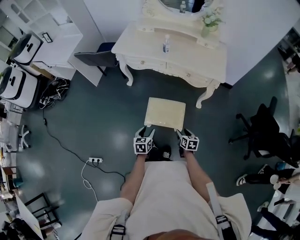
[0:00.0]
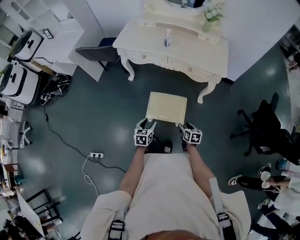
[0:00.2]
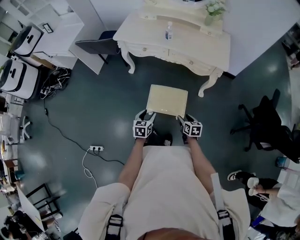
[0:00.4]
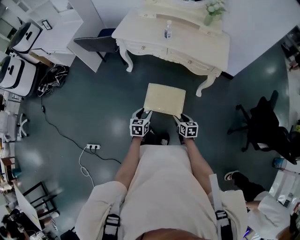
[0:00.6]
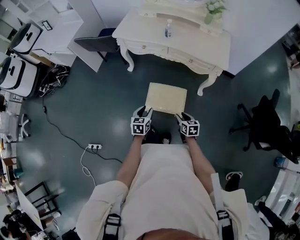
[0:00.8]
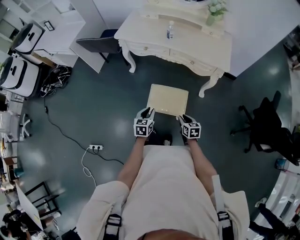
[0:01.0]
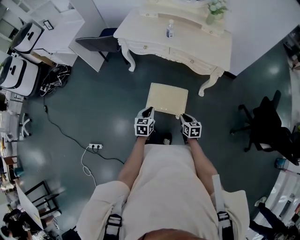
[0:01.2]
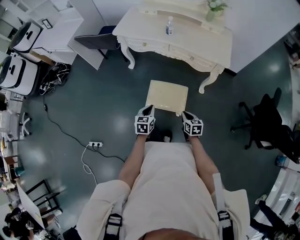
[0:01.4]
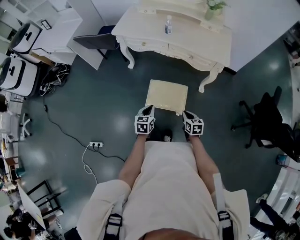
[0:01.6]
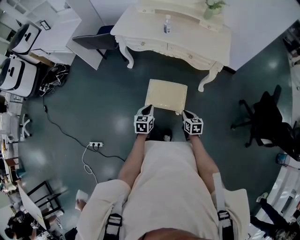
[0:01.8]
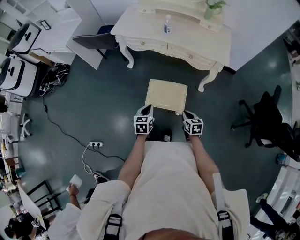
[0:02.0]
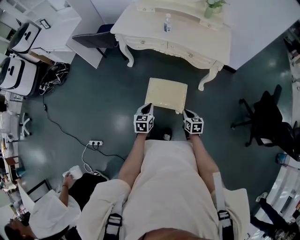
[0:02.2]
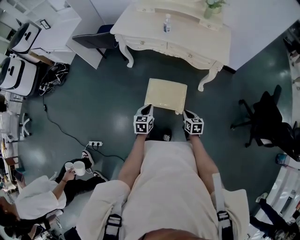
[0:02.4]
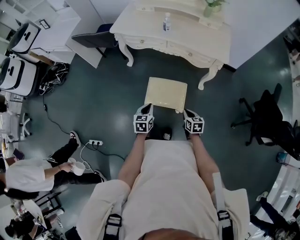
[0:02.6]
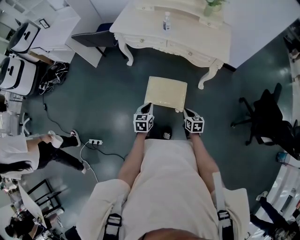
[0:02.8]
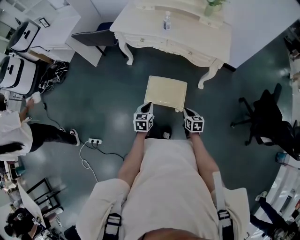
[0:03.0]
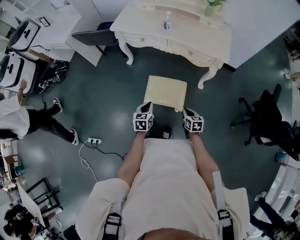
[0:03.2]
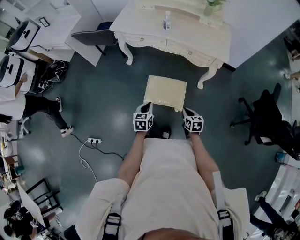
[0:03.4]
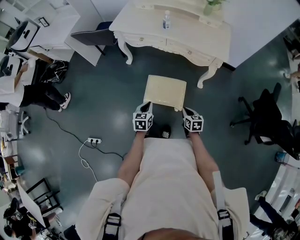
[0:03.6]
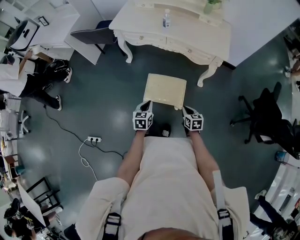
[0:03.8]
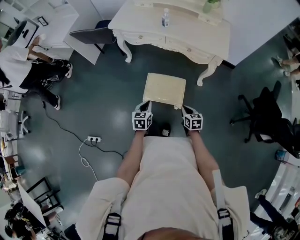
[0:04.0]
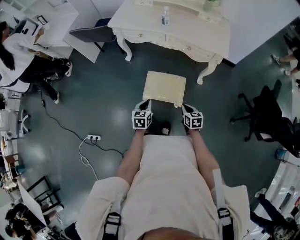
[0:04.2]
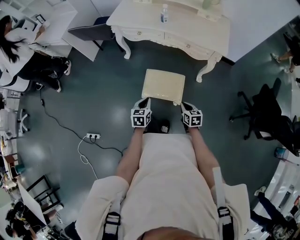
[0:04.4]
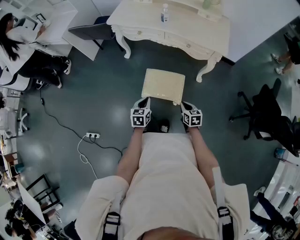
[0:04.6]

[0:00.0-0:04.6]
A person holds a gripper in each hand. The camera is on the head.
0:00.0 to 0:01.6: The left gripper closes its fingers. The right gripper closes.
0:01.6 to 0:04.6: The grippers make only small movements.

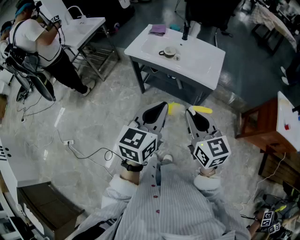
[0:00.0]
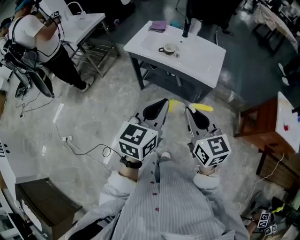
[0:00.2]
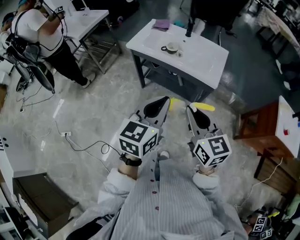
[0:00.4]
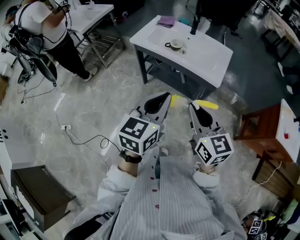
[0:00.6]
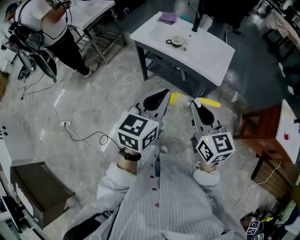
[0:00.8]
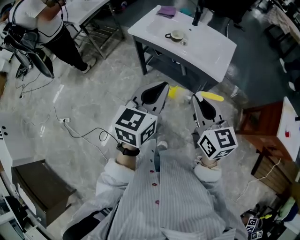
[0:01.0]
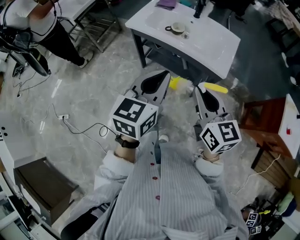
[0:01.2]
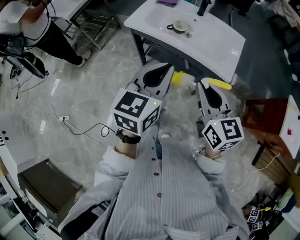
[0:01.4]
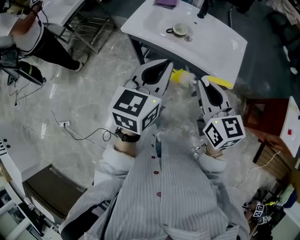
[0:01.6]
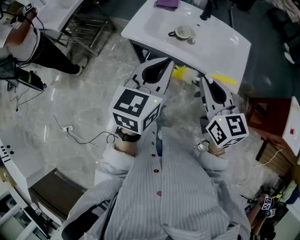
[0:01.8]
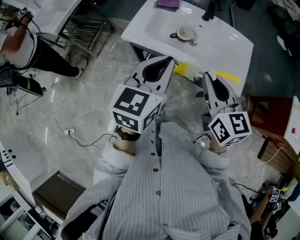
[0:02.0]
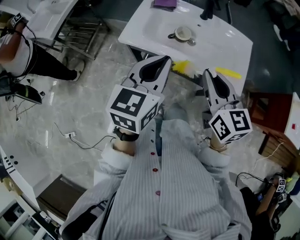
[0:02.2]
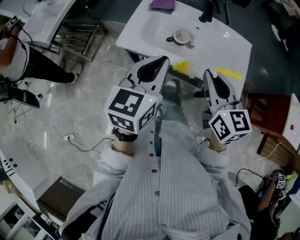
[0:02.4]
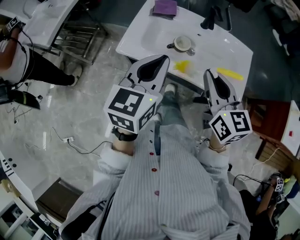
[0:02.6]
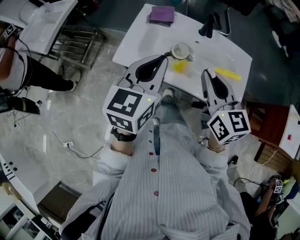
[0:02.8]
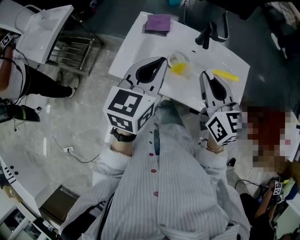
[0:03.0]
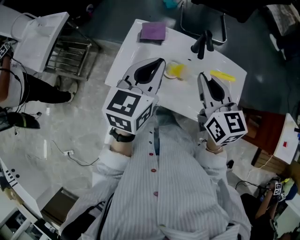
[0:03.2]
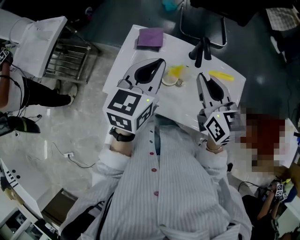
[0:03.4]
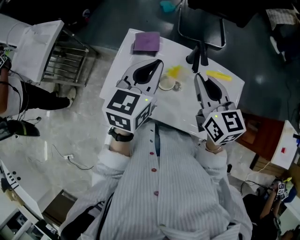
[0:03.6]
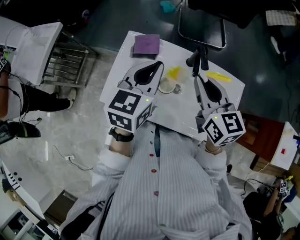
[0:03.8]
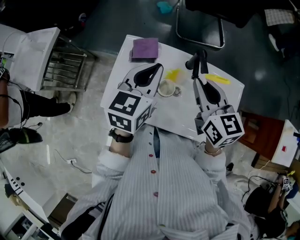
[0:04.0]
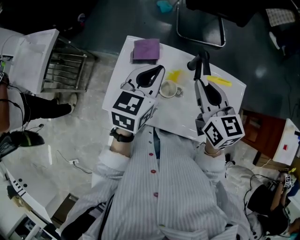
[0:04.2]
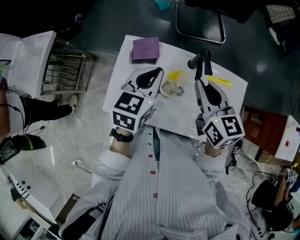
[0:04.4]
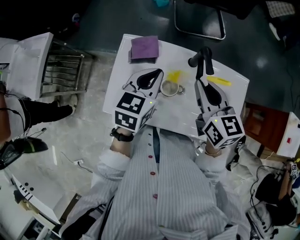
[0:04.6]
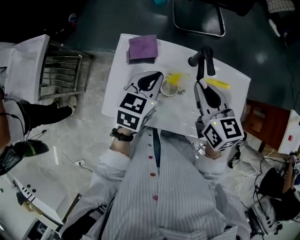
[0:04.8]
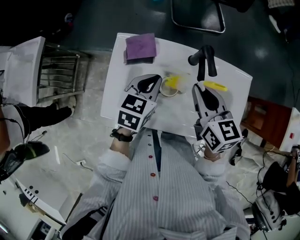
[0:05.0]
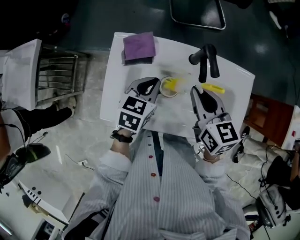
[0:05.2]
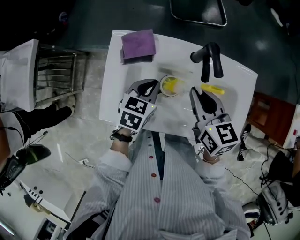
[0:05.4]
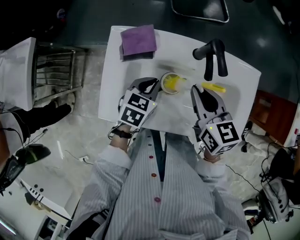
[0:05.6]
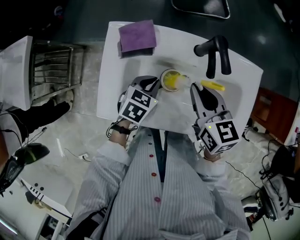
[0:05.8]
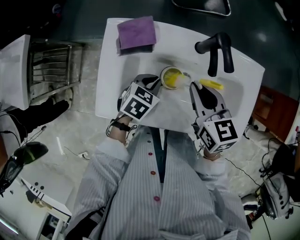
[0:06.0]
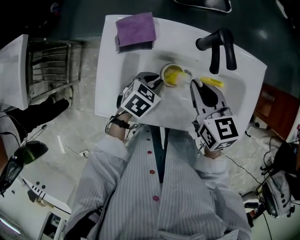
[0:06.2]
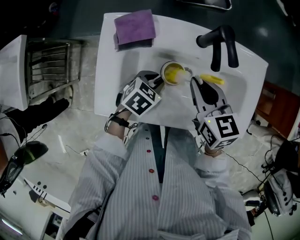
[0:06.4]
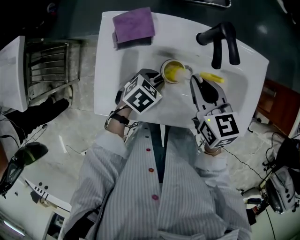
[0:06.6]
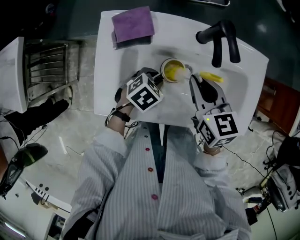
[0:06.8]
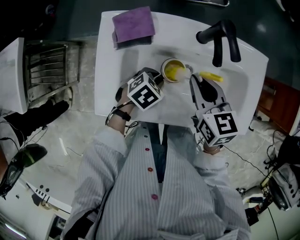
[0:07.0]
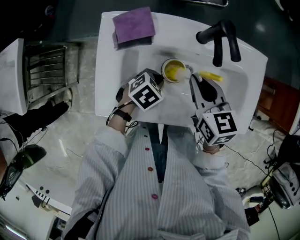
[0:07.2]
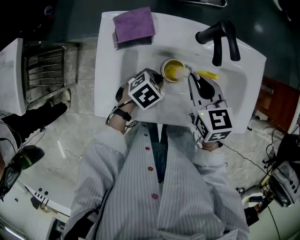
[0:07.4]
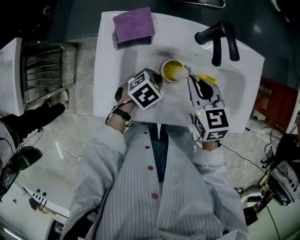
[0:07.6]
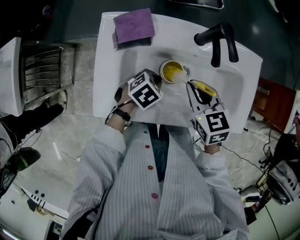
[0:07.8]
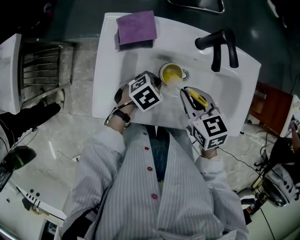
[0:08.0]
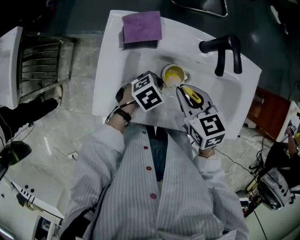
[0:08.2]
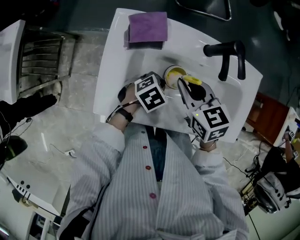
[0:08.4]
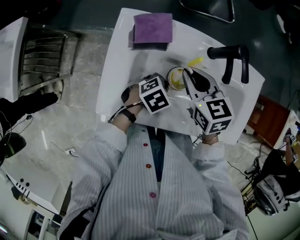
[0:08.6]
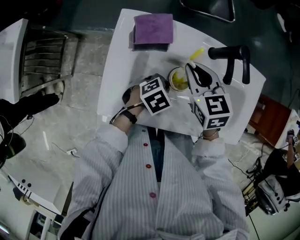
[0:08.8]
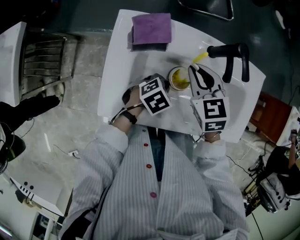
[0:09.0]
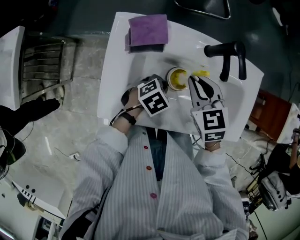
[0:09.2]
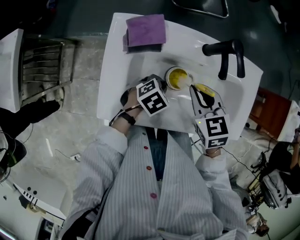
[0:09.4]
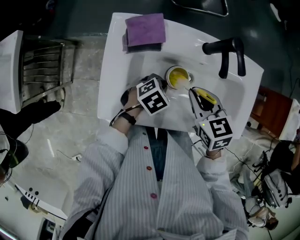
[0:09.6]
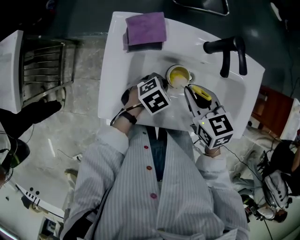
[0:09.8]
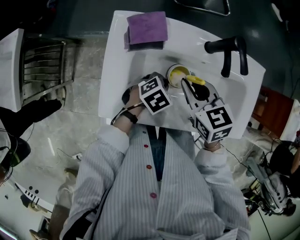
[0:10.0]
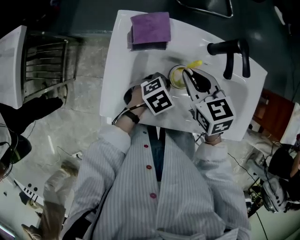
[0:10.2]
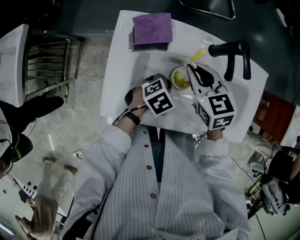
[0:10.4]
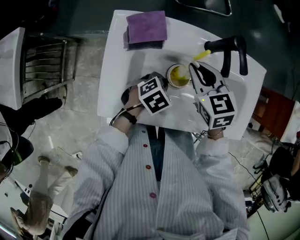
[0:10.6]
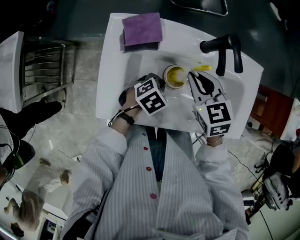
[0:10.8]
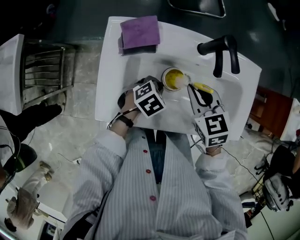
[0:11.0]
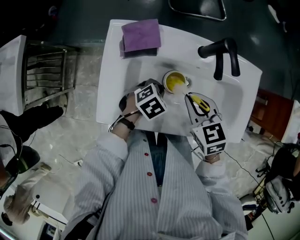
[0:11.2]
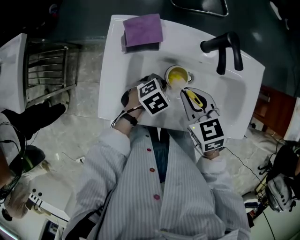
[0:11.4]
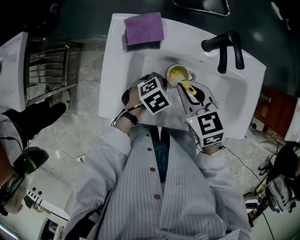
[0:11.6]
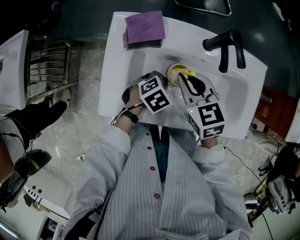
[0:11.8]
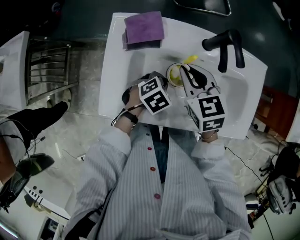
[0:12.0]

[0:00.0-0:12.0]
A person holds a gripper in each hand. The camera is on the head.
0:00.0 to 0:01.6: Both grippers travel together forward, some 20 cm.
0:01.6 to 0:03.0: The grippers both shift forward by about 30 cm.
0:03.0 to 0:04.4: Both grippers move forward, approximately 15 cm.
0:04.4 to 0:06.0: The left gripper moves downward, some 25 cm, and swivels some 40 degrees. The right gripper shifts about 15 cm downward.
0:06.0 to 0:07.6: The left gripper shifts by approximately 5 cm, and swivels roughly 20 degrees.
0:07.6 to 0:09.0: The right gripper heads to the left, covering some 5 cm.
0:10.4 to 0:12.0: The right gripper moves about 5 cm backward and comes back.

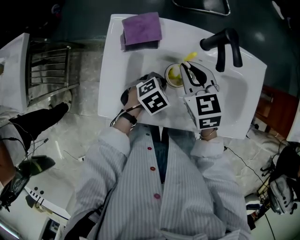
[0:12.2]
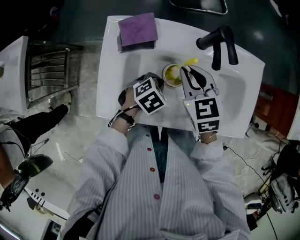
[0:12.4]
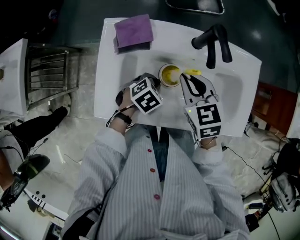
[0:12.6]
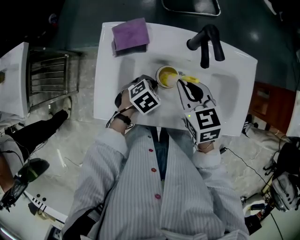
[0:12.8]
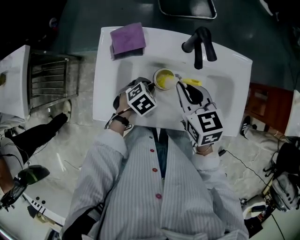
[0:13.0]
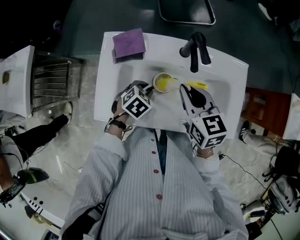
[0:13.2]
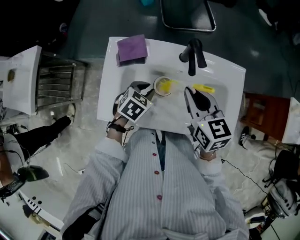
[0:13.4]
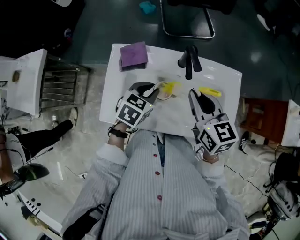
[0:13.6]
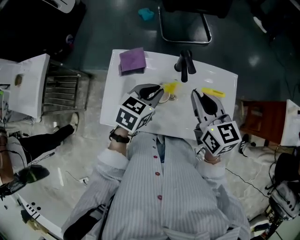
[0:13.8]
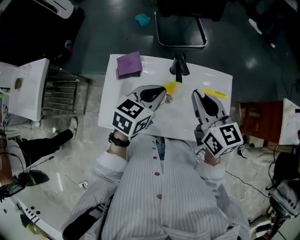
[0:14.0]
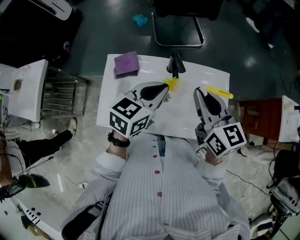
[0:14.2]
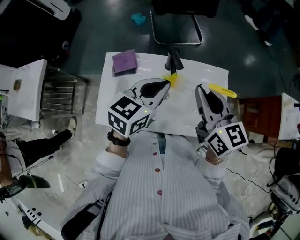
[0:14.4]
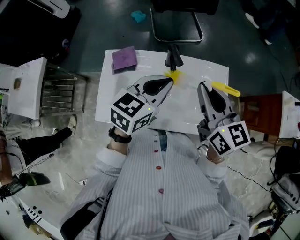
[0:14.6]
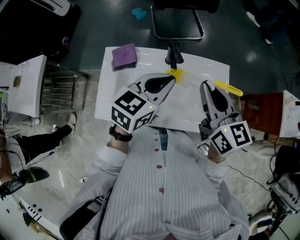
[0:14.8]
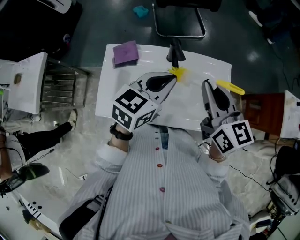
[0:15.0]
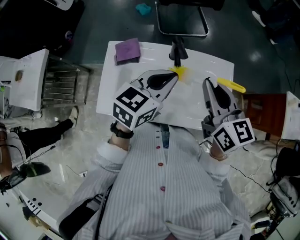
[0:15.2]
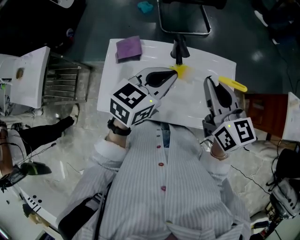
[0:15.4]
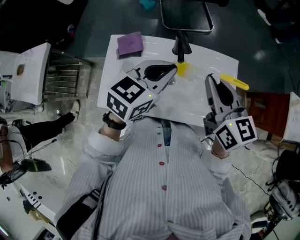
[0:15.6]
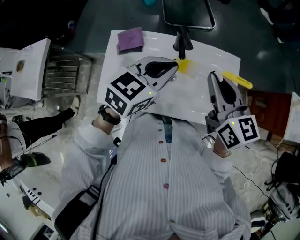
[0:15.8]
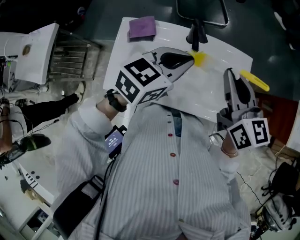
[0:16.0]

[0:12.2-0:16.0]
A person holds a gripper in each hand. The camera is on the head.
0:12.2 to 0:13.4: The left gripper moves upward, approximately 10 cm, while the right gripper goes approximately 15 cm upward and to the right.
0:13.4 to 0:14.8: The left gripper travels upward and to the right by some 25 cm, and angles its fingers upward, by approximately 40 degrees. The right gripper goes roughly 15 cm upward and to the right.
0:14.8 to 0:16.0: There are only small adjustments of the grippers.

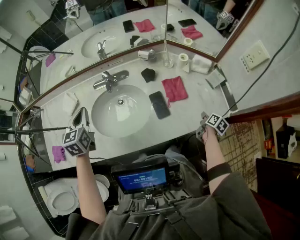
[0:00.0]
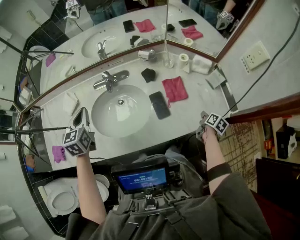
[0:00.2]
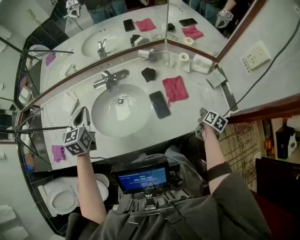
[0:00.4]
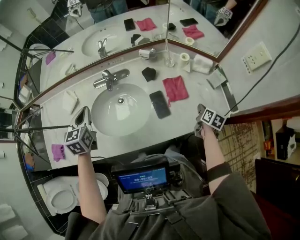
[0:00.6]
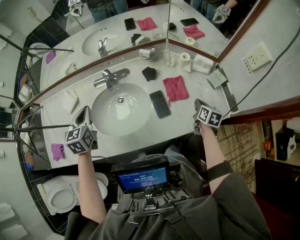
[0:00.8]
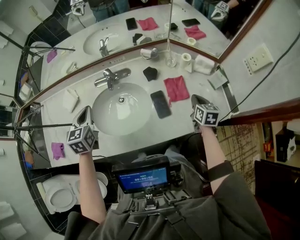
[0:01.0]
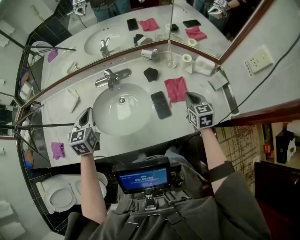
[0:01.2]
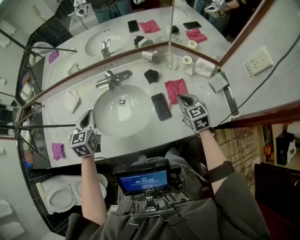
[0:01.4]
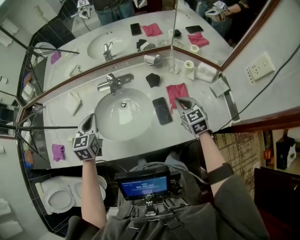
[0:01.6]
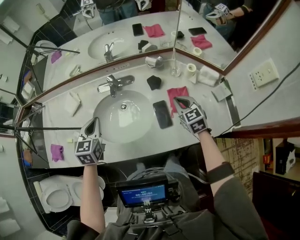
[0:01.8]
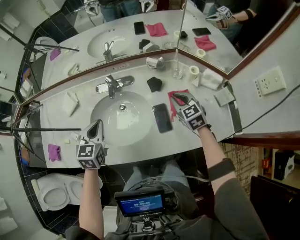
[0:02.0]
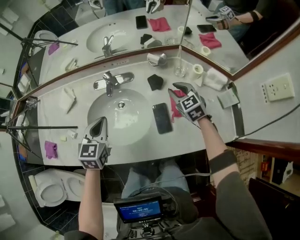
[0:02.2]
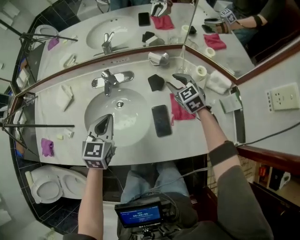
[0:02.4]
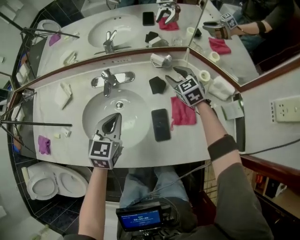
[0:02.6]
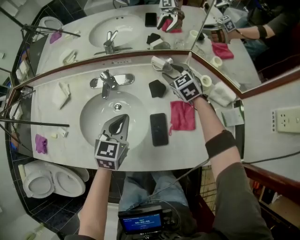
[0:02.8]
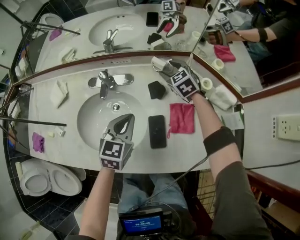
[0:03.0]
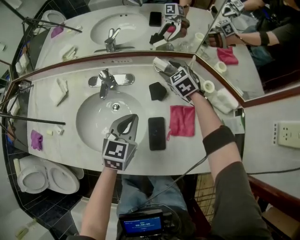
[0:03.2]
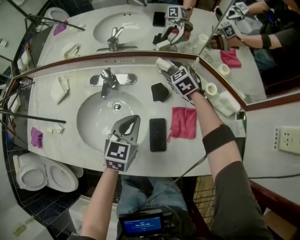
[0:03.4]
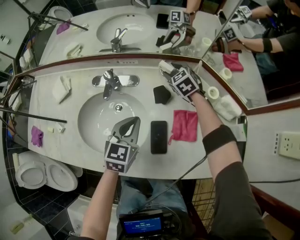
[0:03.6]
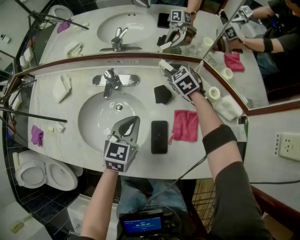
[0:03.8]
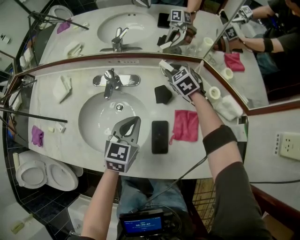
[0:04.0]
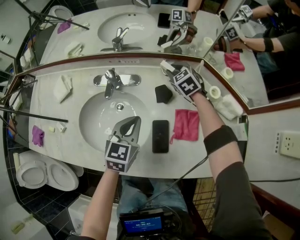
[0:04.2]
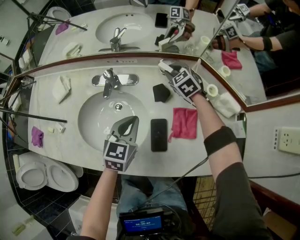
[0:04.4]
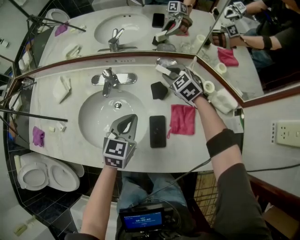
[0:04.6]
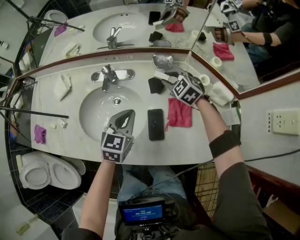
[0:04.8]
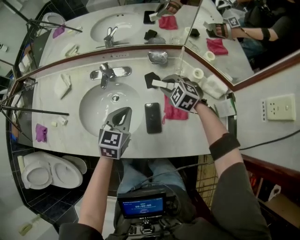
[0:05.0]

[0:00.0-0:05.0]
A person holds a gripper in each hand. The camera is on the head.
0:00.0 to 0:01.6: The right gripper is displaced to the left, upward and forward by about 30 cm, and twists roughly 70 degrees counterclockwise, seen from behind.
0:01.6 to 0:03.4: The right gripper goes approximately 30 cm forward, swivels roughly 30 degrees, and opens. Meanwhile the left gripper heads to the right and downward, covering approximately 25 cm.
0:03.4 to 0:05.0: The right gripper shifts roughly 15 cm backward, turns by some 20 degrees, and closes up. The left gripper changes place by approximately 5 cm.
